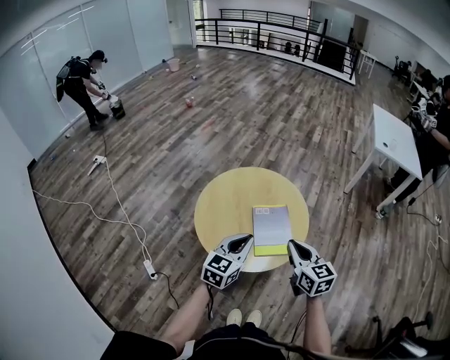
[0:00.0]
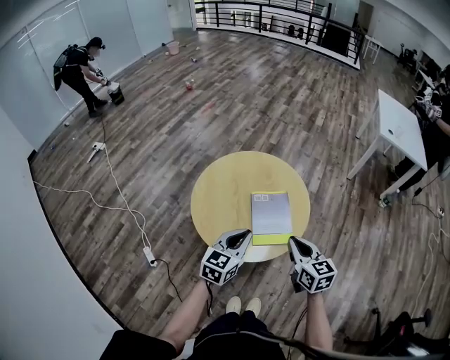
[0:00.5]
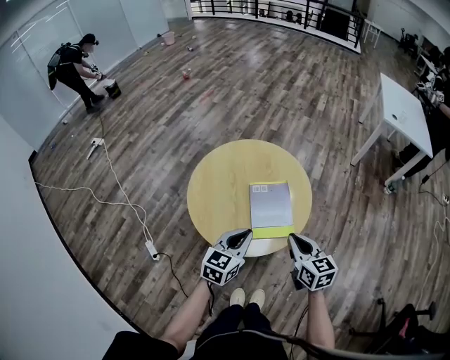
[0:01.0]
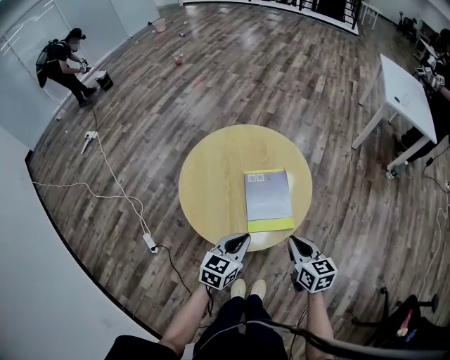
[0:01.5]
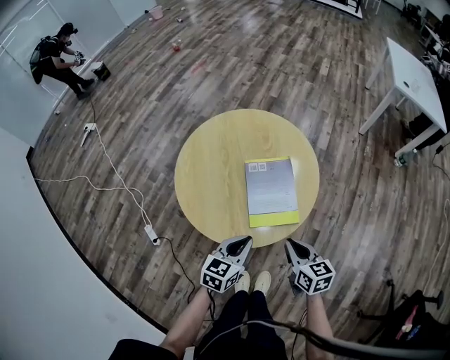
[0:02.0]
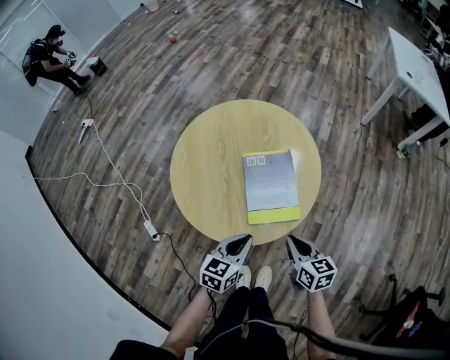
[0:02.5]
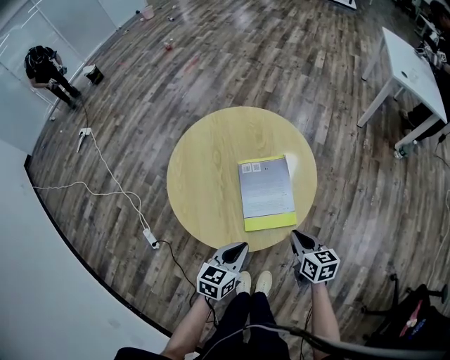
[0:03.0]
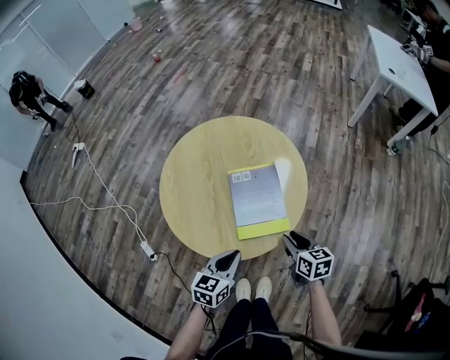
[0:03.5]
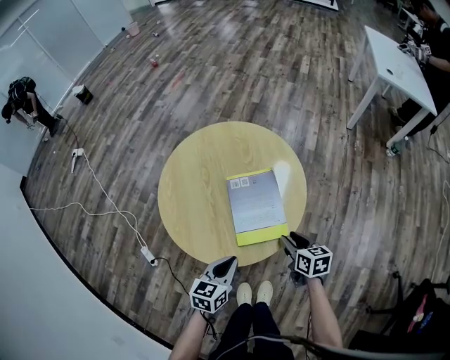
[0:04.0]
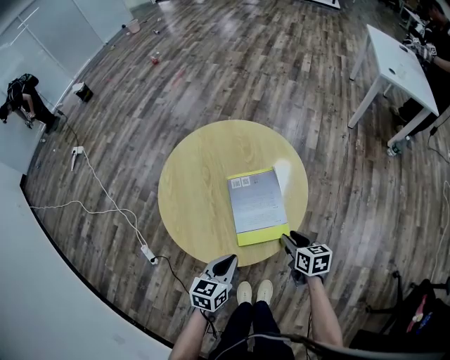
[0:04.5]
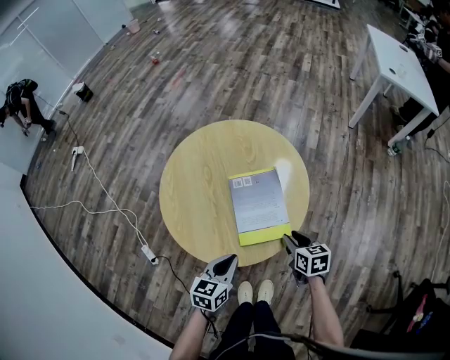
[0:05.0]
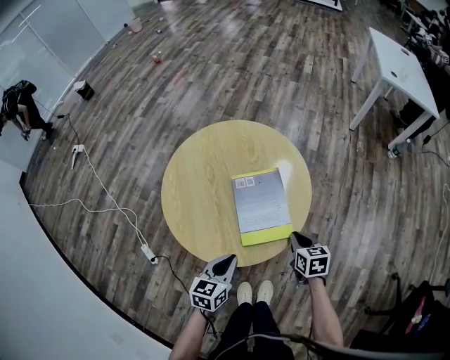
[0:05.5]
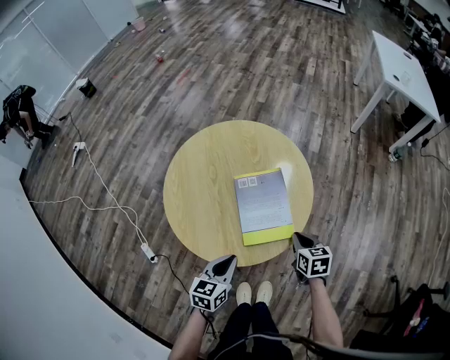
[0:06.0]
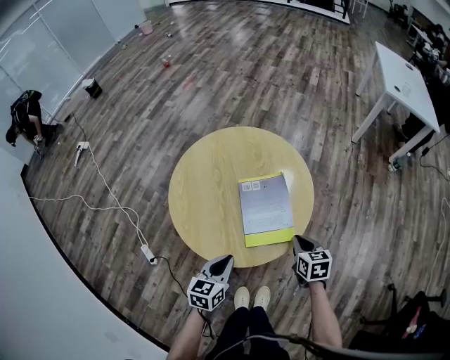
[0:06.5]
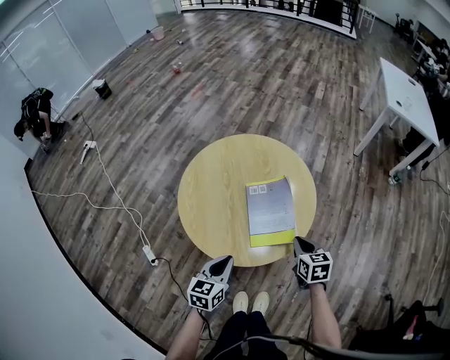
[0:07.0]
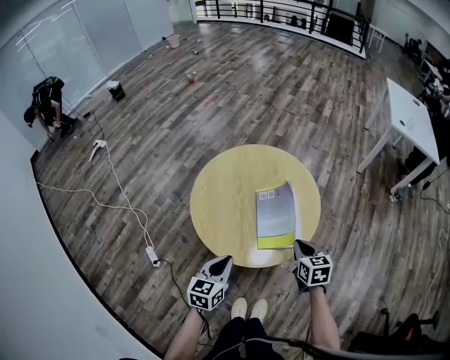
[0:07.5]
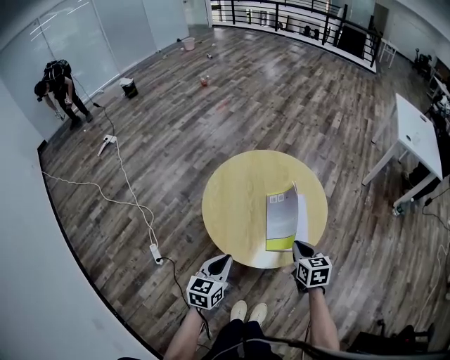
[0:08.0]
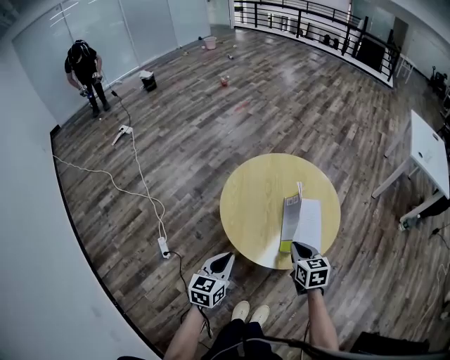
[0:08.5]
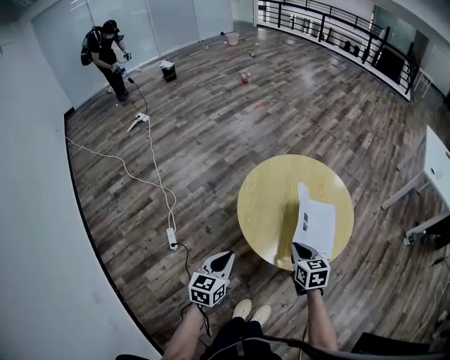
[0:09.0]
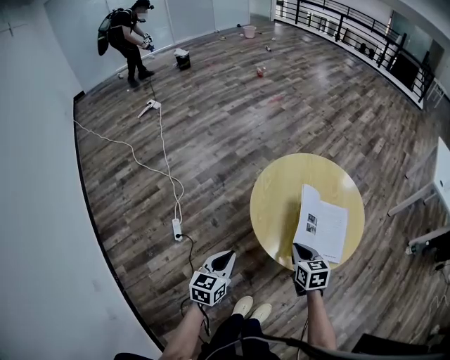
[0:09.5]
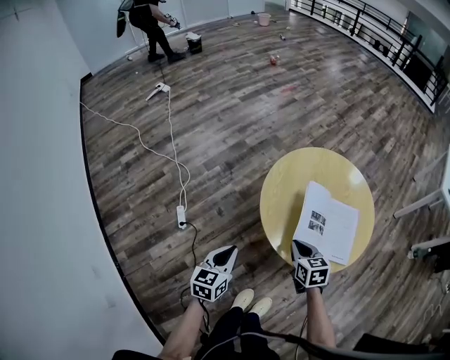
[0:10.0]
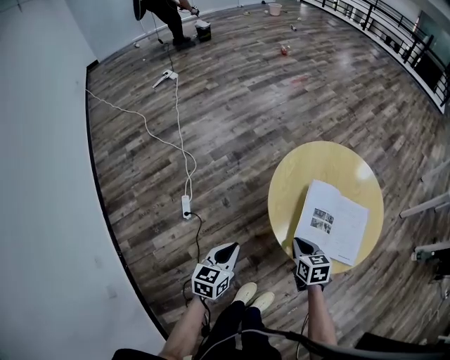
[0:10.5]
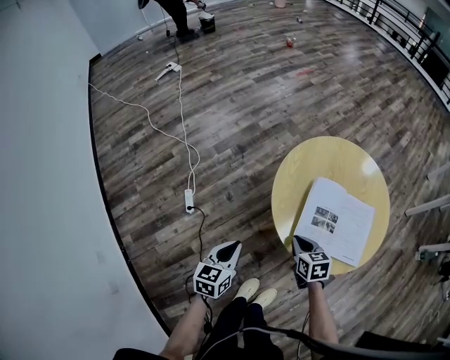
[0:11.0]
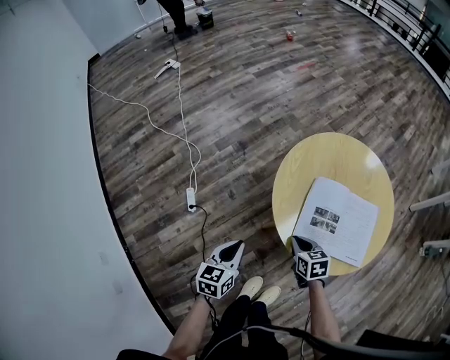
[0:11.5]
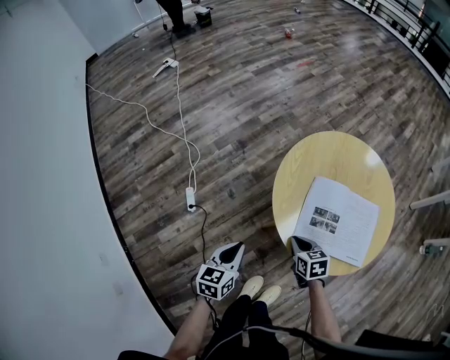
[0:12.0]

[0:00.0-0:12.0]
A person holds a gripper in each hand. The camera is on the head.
0:00.0 to 0:02.0: The grippers both shift downward by about 20 cm.
0:02.0 to 0:04.0: The right gripper goes about 10 cm downward and forward, and opens up.
0:04.0 to 0:06.0: The right gripper closes.
0:06.0 to 0:08.0: The right gripper travels upward and to the left by about 15 cm. The left gripper heads to the left and upward, covering roughly 15 cm.
0:08.0 to 0:10.0: The grippers both shift to the left by about 15 cm. The right gripper changes its angle by approximately 20 degrees.
0:10.0 to 0:12.0: The right gripper shifts roughly 10 cm downward.

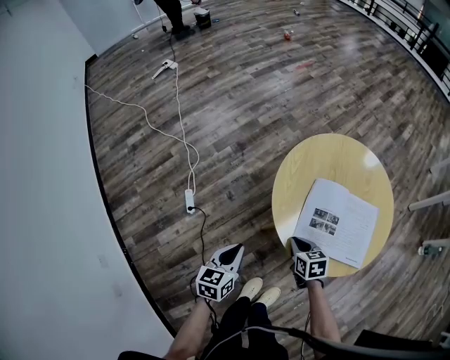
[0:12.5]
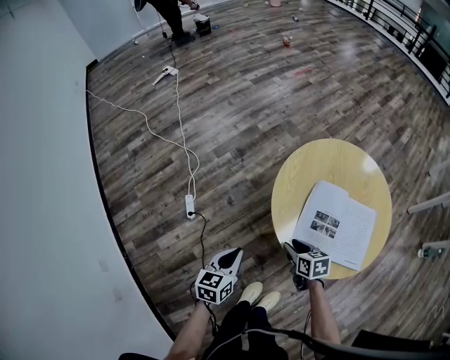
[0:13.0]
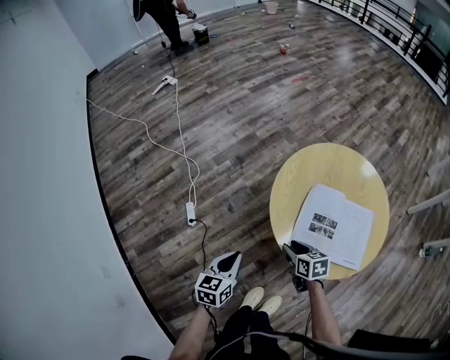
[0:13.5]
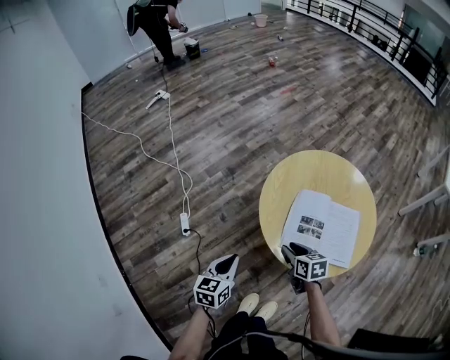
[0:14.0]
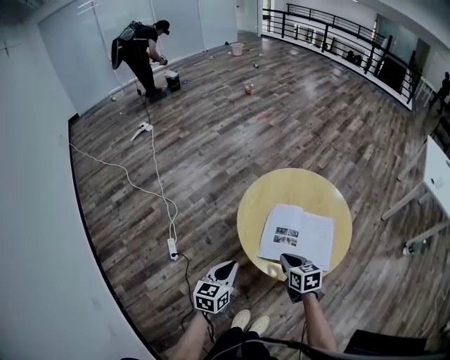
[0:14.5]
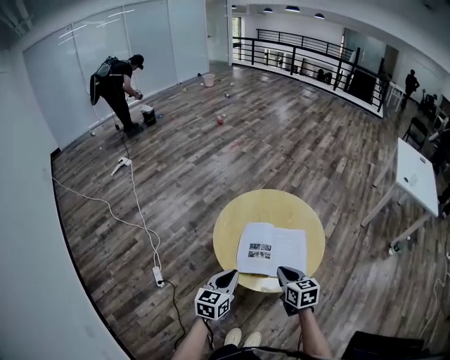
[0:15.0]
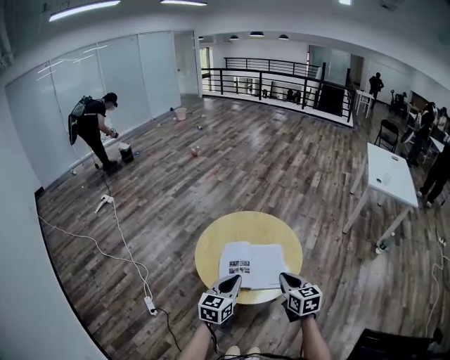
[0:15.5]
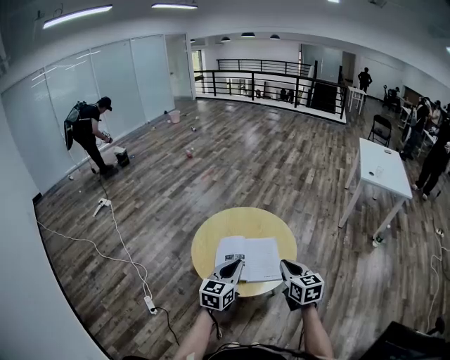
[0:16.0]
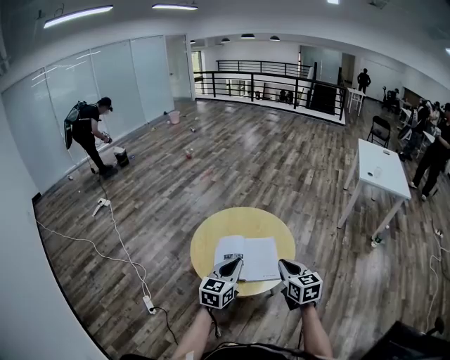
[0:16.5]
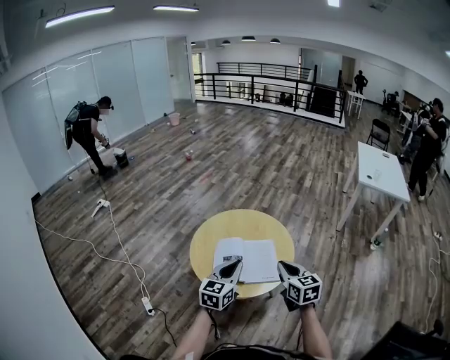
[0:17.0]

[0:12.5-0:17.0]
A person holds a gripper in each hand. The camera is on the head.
0:12.5 to 0:14.5: The two grippers go roughly 10 cm upward and to the right. The right gripper opens, then closes again.
0:14.5 to 0:17.0: The left gripper travels to the right and upward by approximately 25 cm, and rotates some 30 degrees, while the right gripper is displaced upward and to the right by about 25 cm, and changes its angle by roughly 30 degrees.

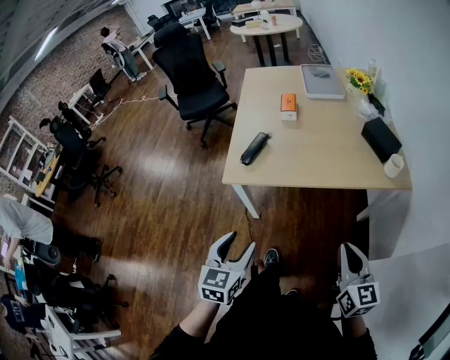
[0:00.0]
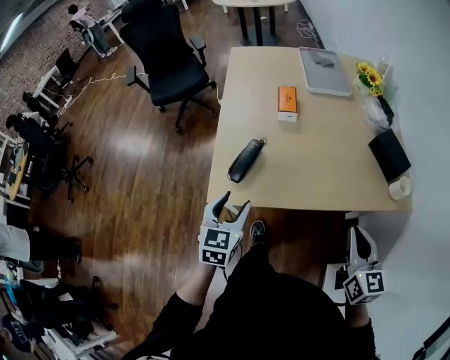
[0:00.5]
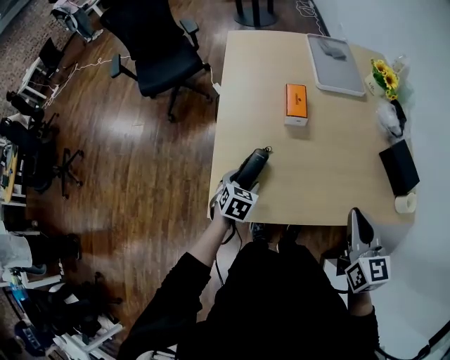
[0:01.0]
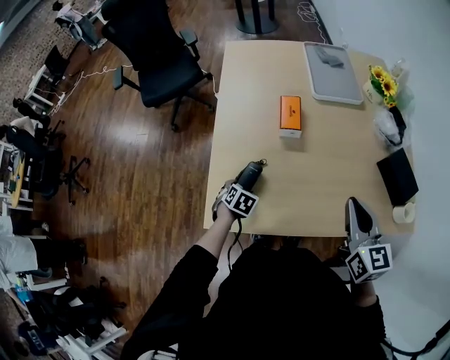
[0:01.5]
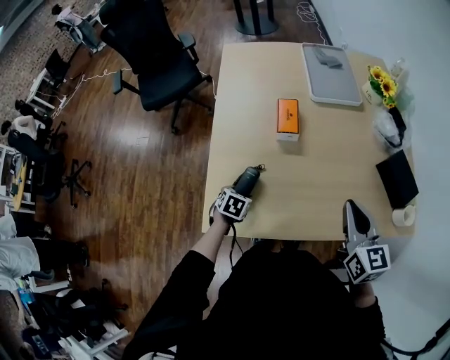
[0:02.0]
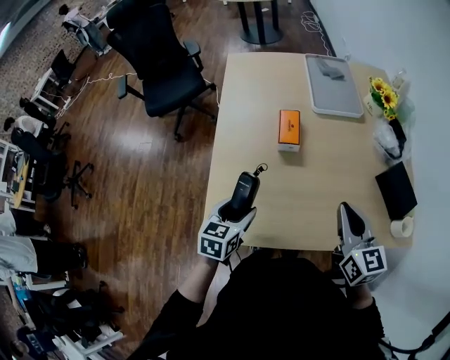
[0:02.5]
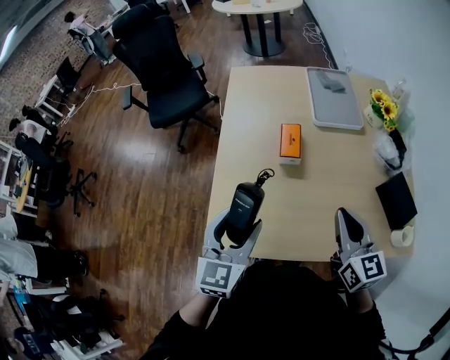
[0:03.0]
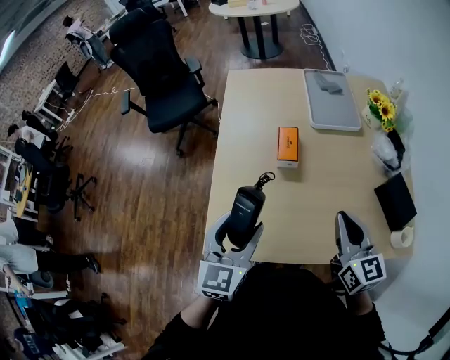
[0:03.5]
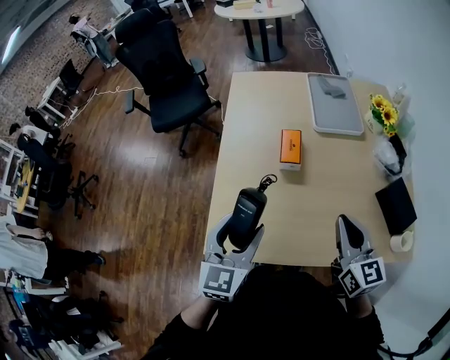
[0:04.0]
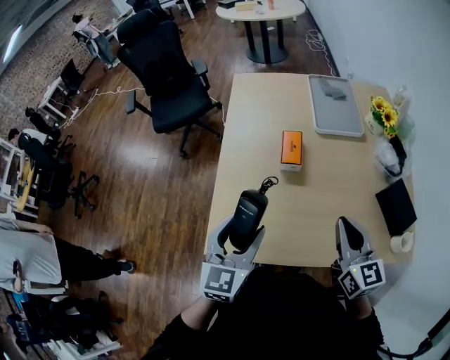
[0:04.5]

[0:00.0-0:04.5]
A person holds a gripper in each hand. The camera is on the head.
0:00.0 to 0:02.0: Both grippers are carried forward, some 50 cm. The left gripper moves downward, approximately 25 cm, and tilts its fingers some 40 degrees downward.
0:02.0 to 0:04.5: The left gripper goes approximately 30 cm upward, and points its fingers approximately 50 degrees further upward.

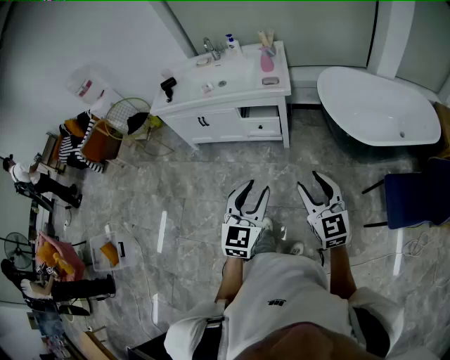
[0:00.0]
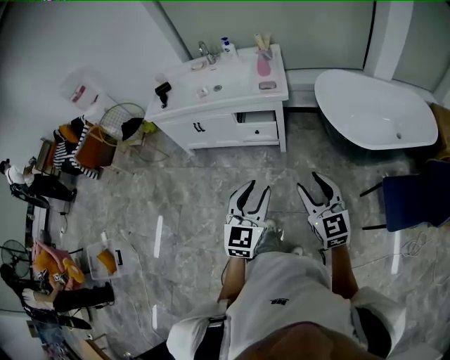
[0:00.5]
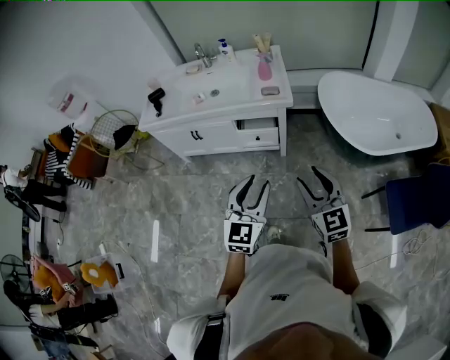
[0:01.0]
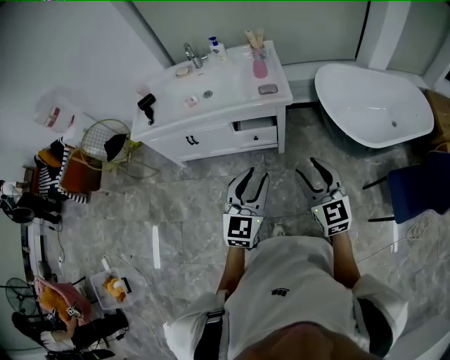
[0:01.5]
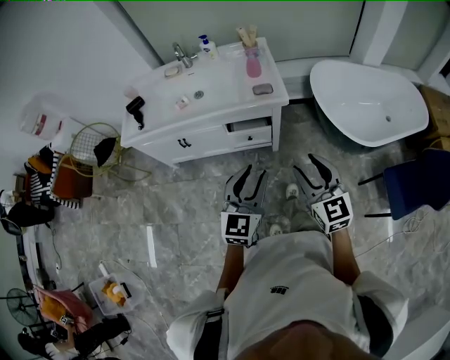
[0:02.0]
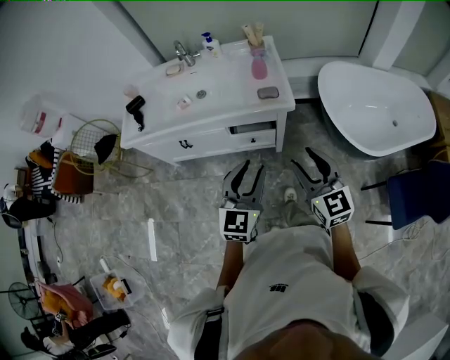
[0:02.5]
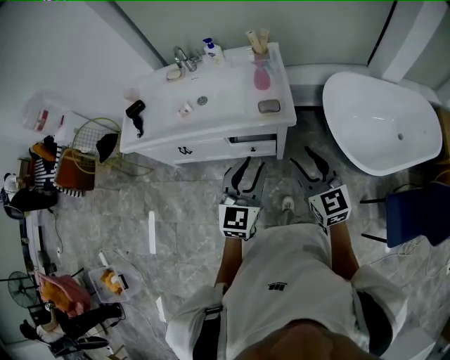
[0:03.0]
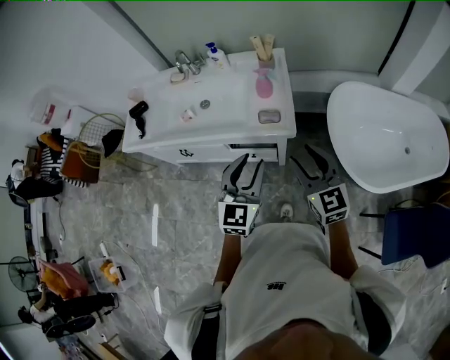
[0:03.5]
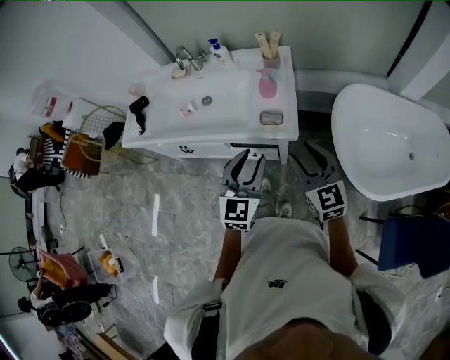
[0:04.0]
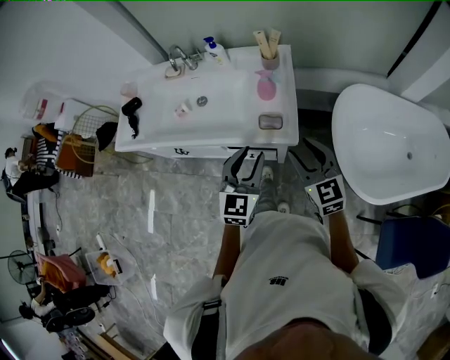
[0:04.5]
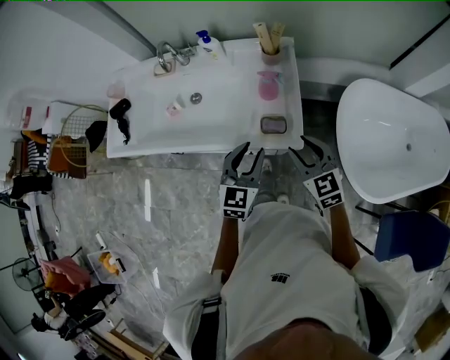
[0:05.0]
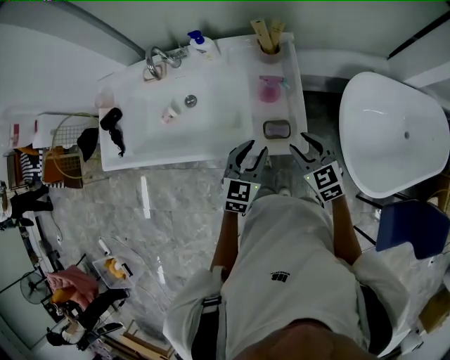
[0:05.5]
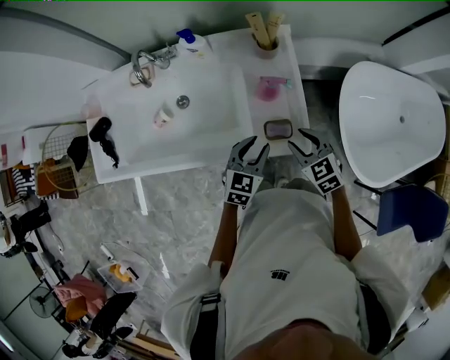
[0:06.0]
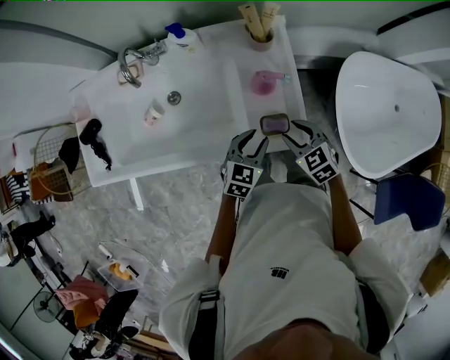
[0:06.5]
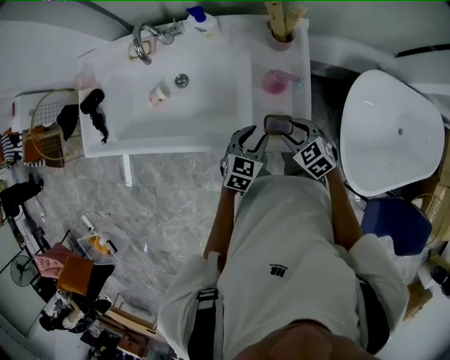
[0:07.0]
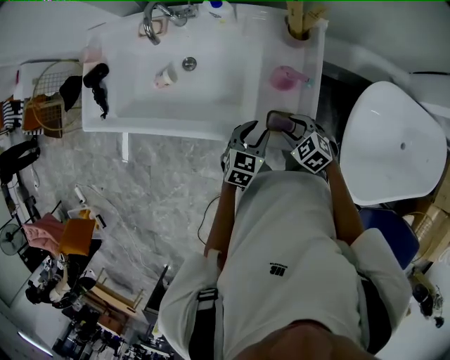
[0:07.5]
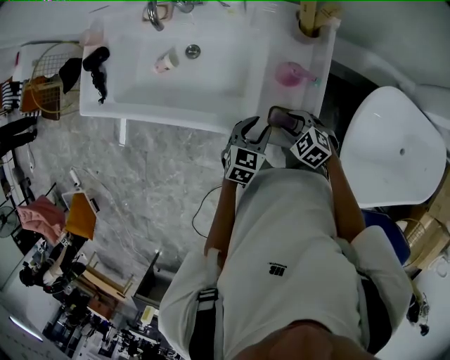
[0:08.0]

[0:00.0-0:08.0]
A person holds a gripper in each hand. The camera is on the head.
0:00.0 to 0:02.0: Both grippers move forward and to the left, about 25 cm.
0:02.0 to 0:04.0: Both grippers move forward, about 25 cm.
0:04.0 to 0:06.0: Both grippers move forward and downward, approximately 30 cm. The left gripper rotates approximately 30 degrees, while the right gripper tips its fingers downward by about 30 degrees.
0:06.0 to 0:08.0: The left gripper moves downward, about 5 cm; the right gripper goes about 10 cm downward, and swivels approximately 40 degrees.
